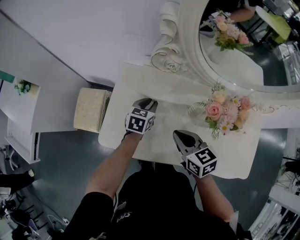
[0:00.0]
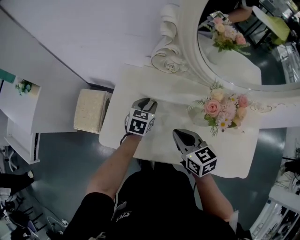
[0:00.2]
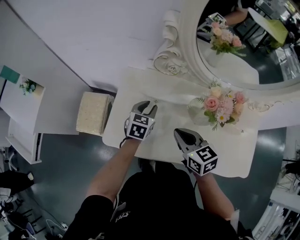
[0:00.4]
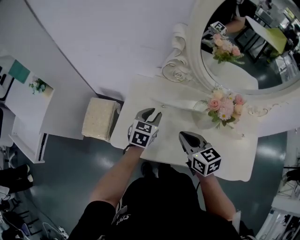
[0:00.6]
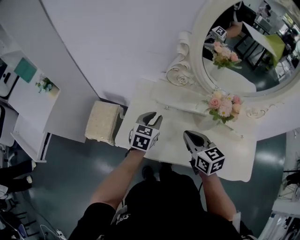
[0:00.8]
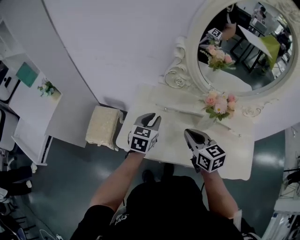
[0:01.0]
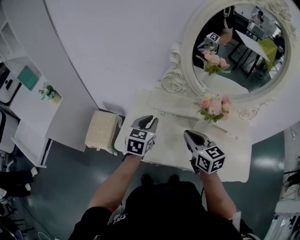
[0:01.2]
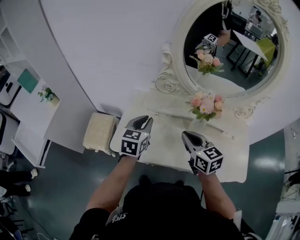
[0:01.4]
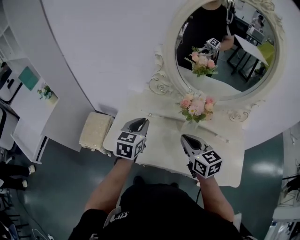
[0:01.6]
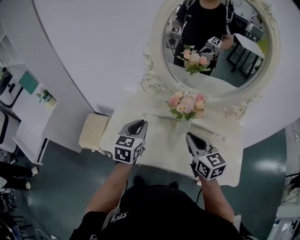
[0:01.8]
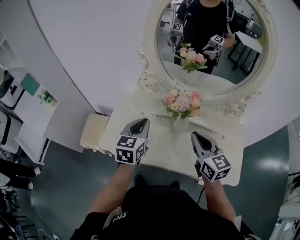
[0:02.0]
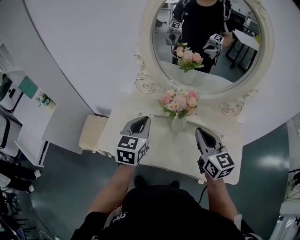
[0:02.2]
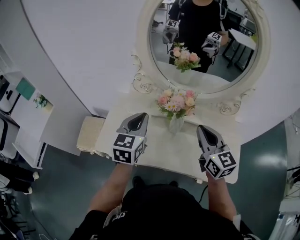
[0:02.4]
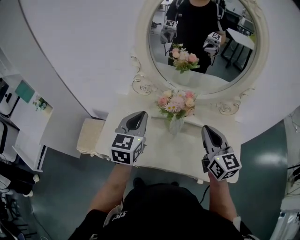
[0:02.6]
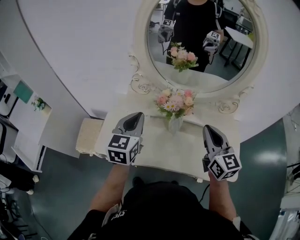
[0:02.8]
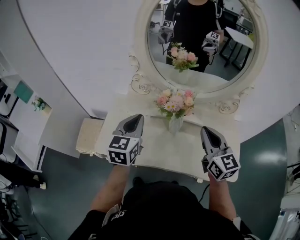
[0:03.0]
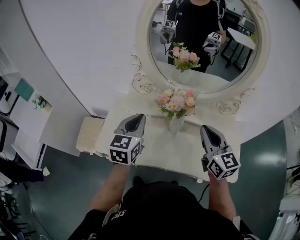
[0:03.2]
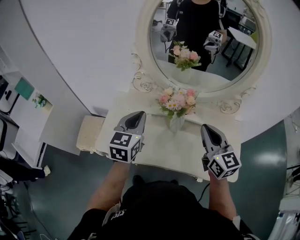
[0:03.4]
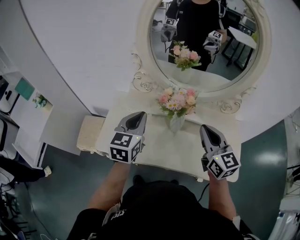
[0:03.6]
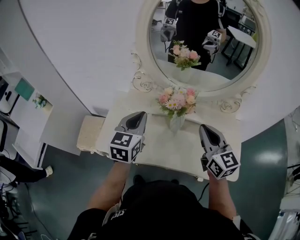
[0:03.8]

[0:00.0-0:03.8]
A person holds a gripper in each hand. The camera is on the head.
0:00.0 to 0:01.2: The left gripper travels upward and backward by roughly 20 cm, while the right gripper travels upward by some 10 cm.
0:01.2 to 0:02.6: The grippers both shift to the right and upward by approximately 20 cm. The right gripper rotates approximately 20 degrees.
0:02.6 to 0:03.8: There are only small adjustments of the grippers.

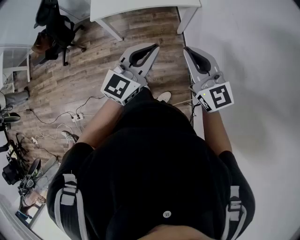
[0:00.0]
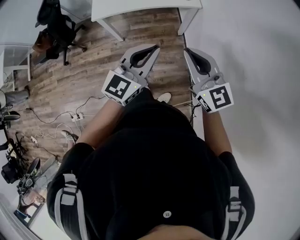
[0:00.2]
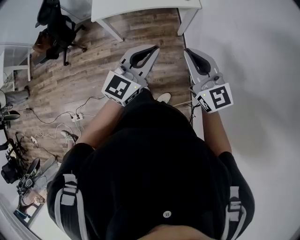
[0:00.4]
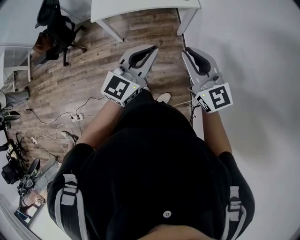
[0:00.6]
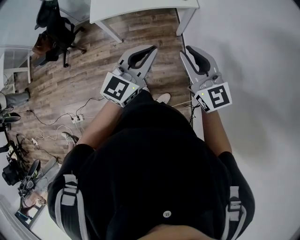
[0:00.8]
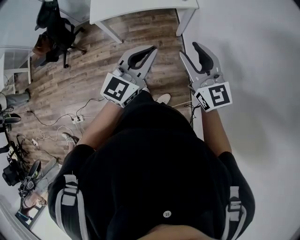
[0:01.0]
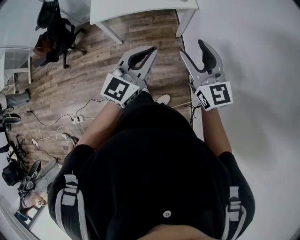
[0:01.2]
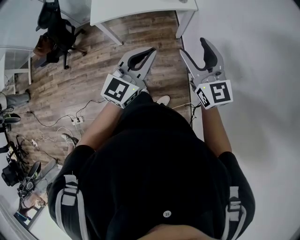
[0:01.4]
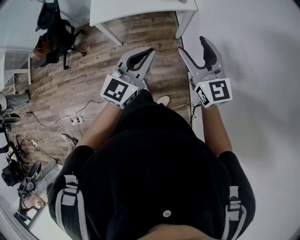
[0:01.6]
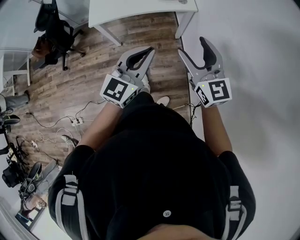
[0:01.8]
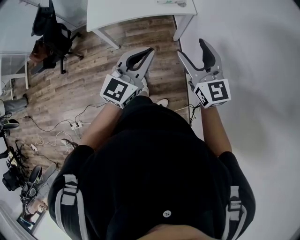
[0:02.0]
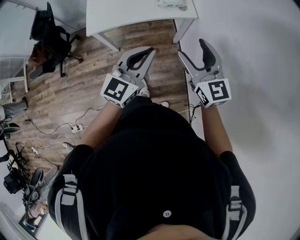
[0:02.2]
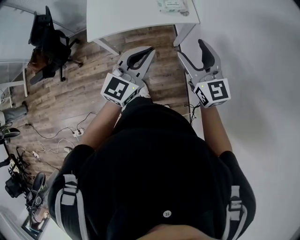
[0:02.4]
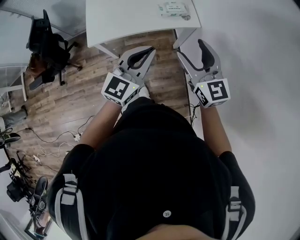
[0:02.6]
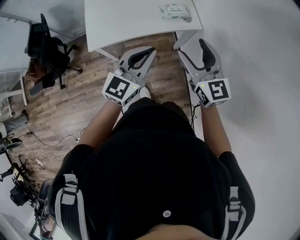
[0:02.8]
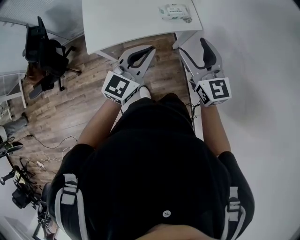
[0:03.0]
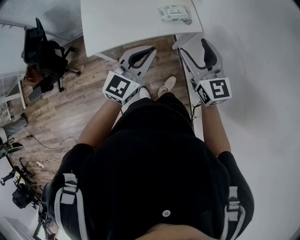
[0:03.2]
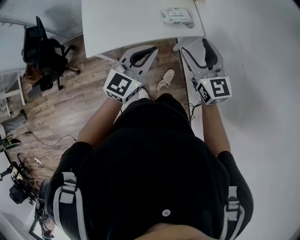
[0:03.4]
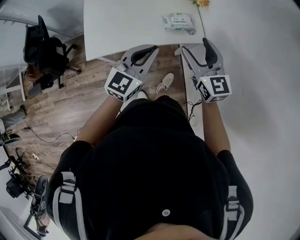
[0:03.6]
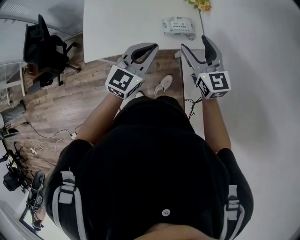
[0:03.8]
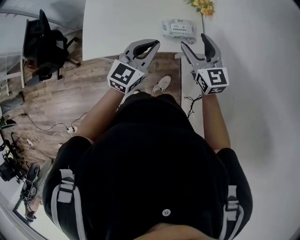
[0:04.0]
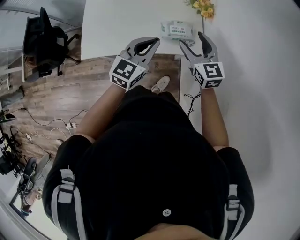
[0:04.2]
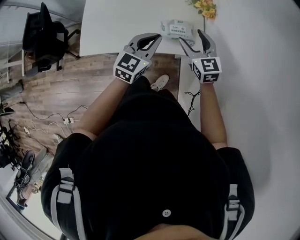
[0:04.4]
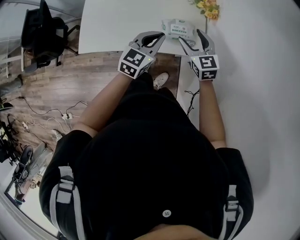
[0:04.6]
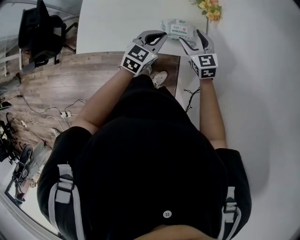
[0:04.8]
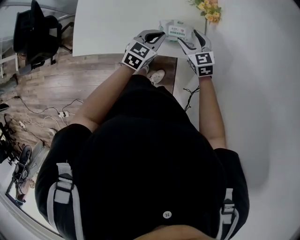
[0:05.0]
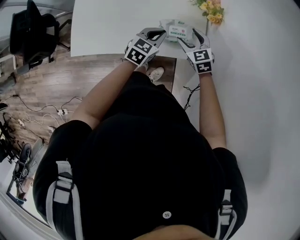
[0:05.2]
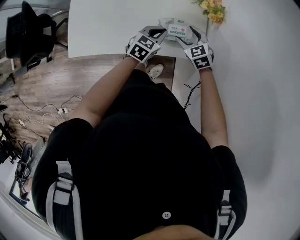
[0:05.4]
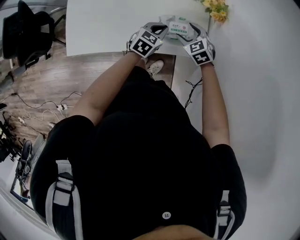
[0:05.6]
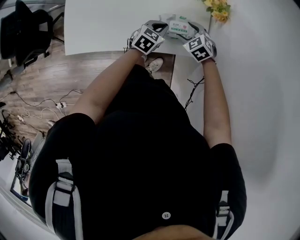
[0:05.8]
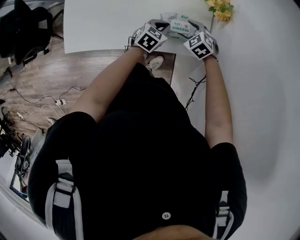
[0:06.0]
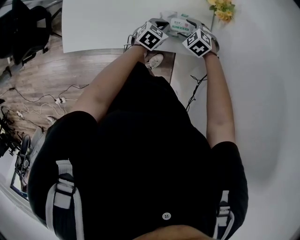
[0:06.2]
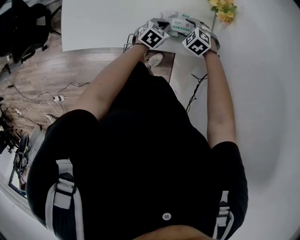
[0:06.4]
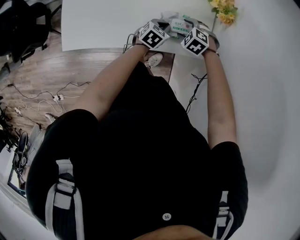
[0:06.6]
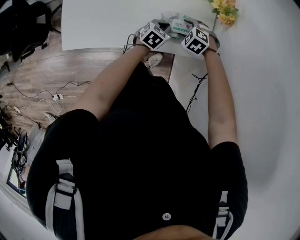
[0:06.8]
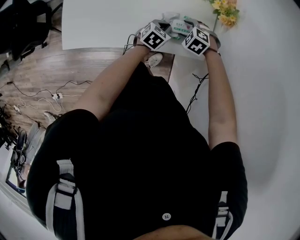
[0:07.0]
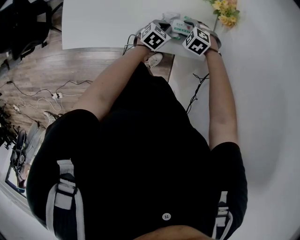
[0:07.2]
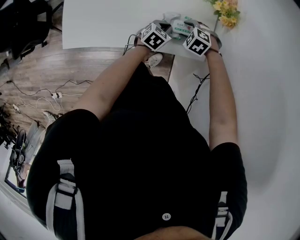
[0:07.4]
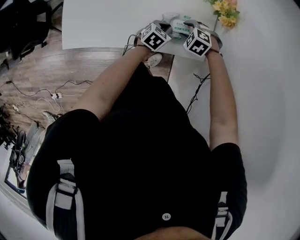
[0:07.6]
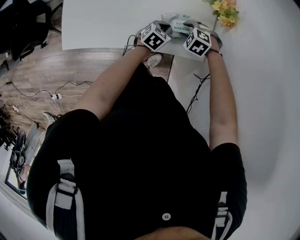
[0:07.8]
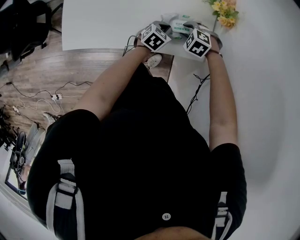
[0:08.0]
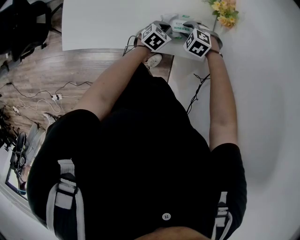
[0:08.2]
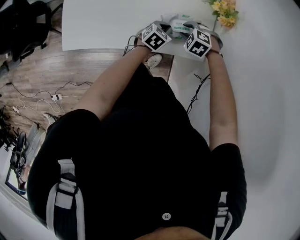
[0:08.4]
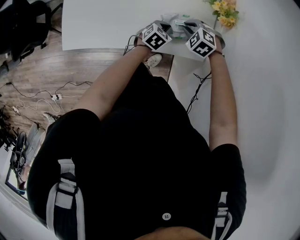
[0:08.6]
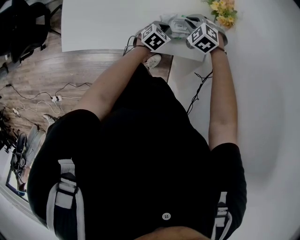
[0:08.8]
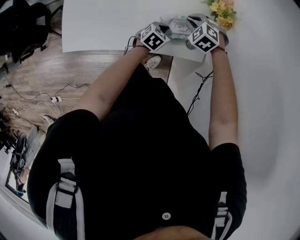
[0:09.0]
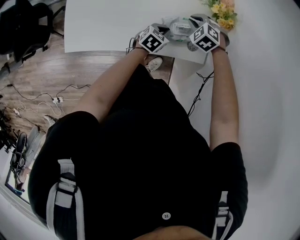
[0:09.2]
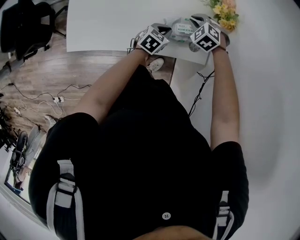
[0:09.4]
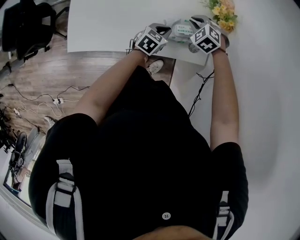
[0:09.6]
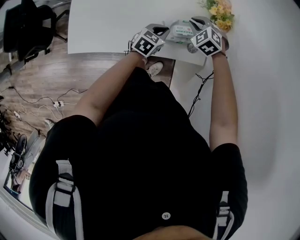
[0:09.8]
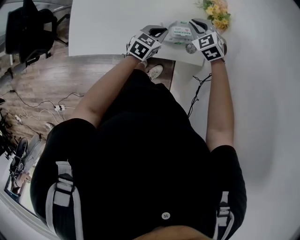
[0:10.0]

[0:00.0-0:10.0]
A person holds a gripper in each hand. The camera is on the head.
0:00.0 to 0:01.4: The right gripper opens.
0:01.4 to 0:02.8: Both grippers travel together forward and to the left, about 25 cm.
0:02.8 to 0:04.2: The left gripper moves forward, some 25 cm; the right gripper shifts about 30 cm forward and downward.
0:04.2 to 0:05.8: The grippers both shift downward and forward by roughly 30 cm. The left gripper changes its angle by about 30 degrees, while the right gripper angles its fingers downward, by roughly 40 degrees.
0:05.8 to 0:07.2: The right gripper turns by some 30 degrees. The left gripper moves downward, approximately 5 cm.
0:07.2 to 0:08.6: The right gripper closes its fingers.
0:08.6 to 0:10.0: Both grippers travel together upward, about 10 cm. The right gripper swivels roughly 30 degrees.

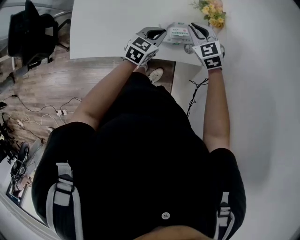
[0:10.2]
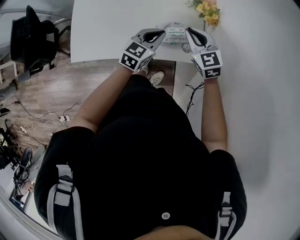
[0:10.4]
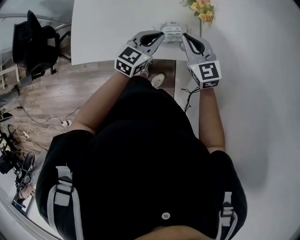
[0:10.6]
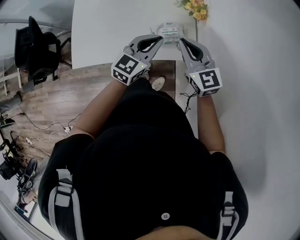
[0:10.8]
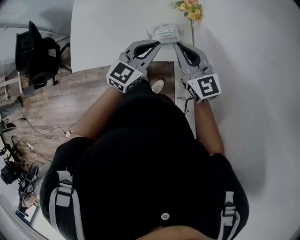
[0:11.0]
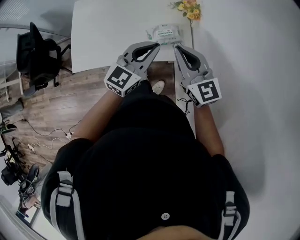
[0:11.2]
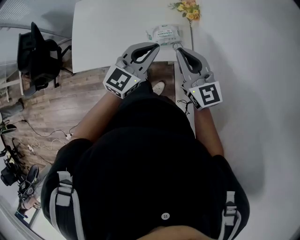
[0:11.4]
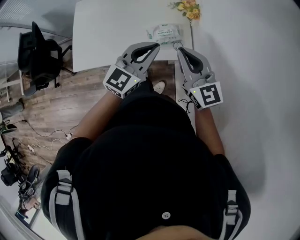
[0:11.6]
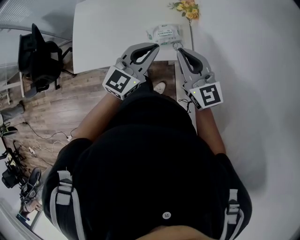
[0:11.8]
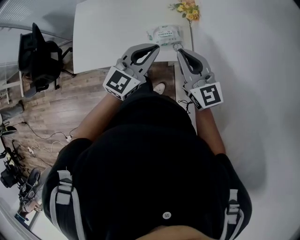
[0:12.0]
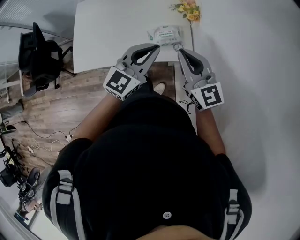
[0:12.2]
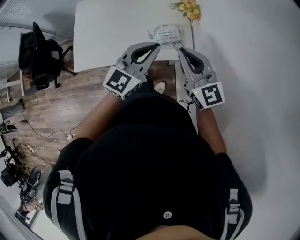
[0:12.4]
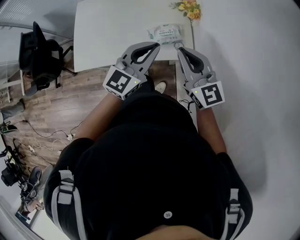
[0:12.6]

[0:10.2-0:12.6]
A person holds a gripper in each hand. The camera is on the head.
0:10.2 to 0:11.4: The left gripper is displaced upward and backward by some 25 cm, and turns by roughly 30 degrees; the right gripper heads backward and upward, covering some 25 cm, and points its fingers about 30 degrees further upward.
0:11.4 to 0:12.6: There are only small adjustments of the grippers.

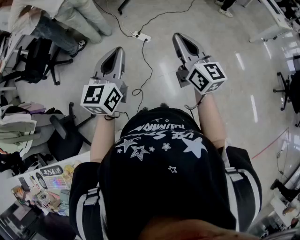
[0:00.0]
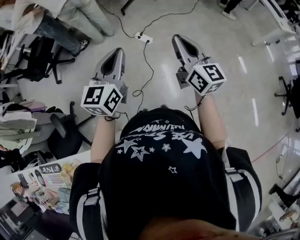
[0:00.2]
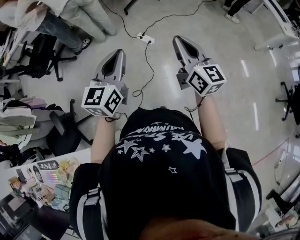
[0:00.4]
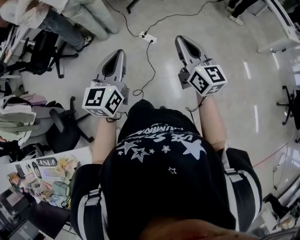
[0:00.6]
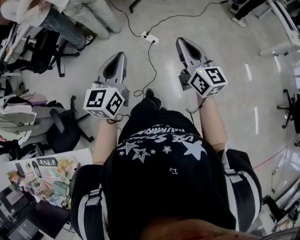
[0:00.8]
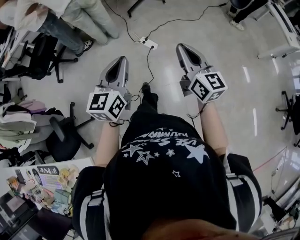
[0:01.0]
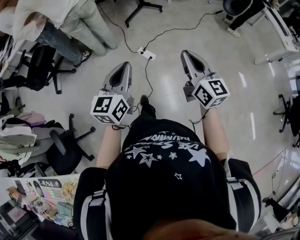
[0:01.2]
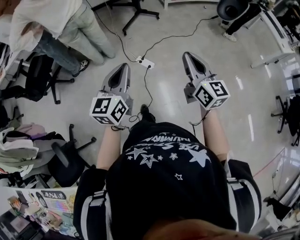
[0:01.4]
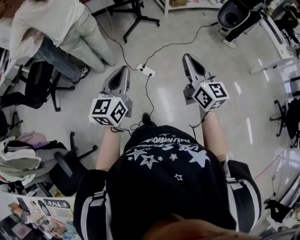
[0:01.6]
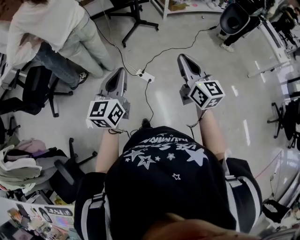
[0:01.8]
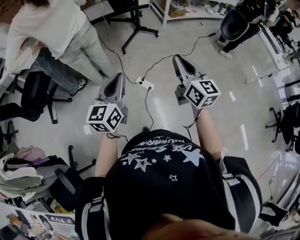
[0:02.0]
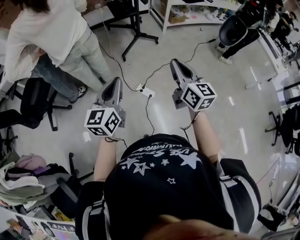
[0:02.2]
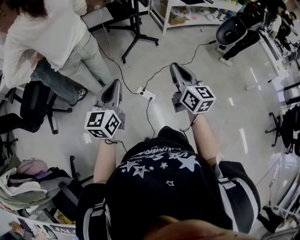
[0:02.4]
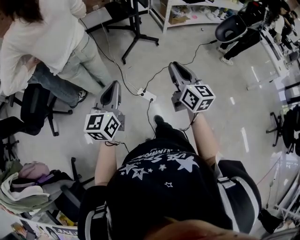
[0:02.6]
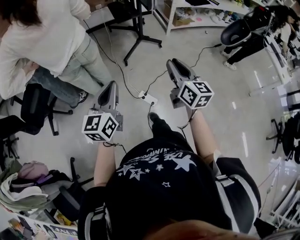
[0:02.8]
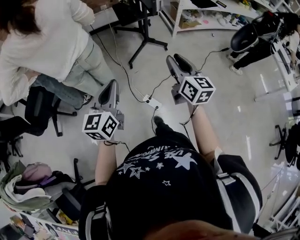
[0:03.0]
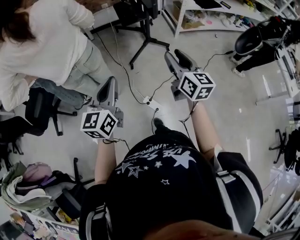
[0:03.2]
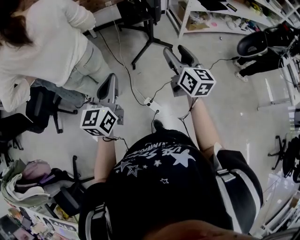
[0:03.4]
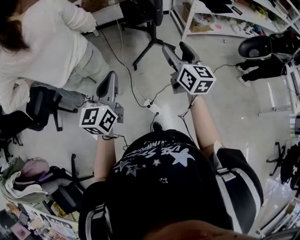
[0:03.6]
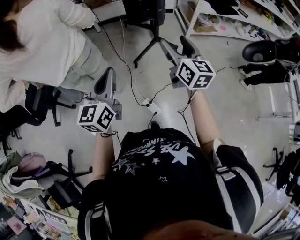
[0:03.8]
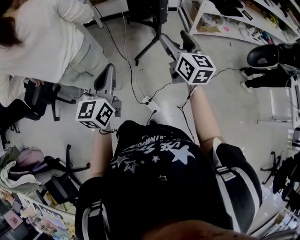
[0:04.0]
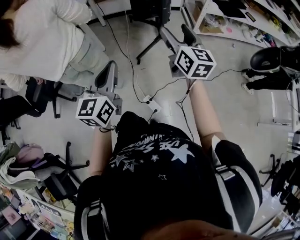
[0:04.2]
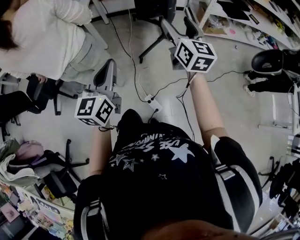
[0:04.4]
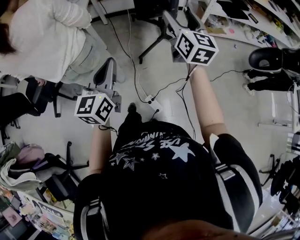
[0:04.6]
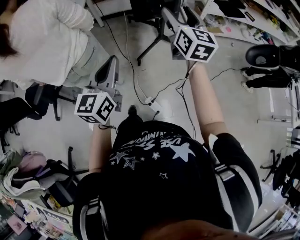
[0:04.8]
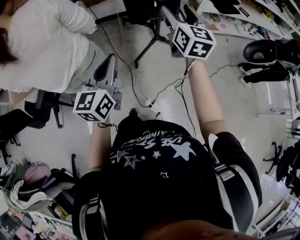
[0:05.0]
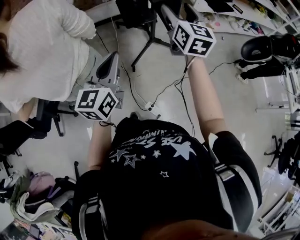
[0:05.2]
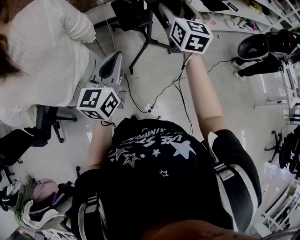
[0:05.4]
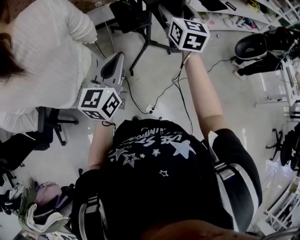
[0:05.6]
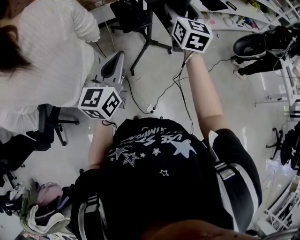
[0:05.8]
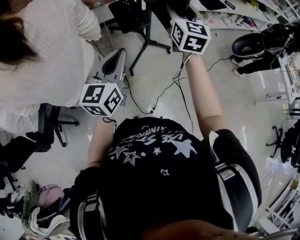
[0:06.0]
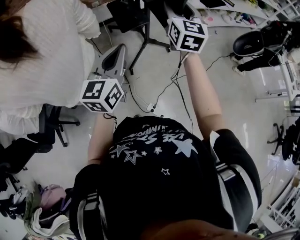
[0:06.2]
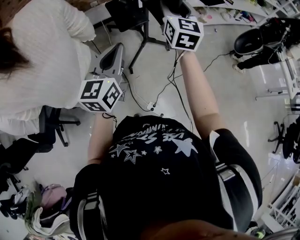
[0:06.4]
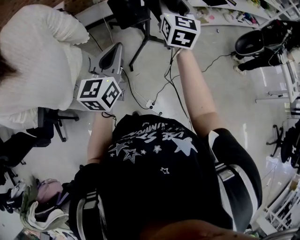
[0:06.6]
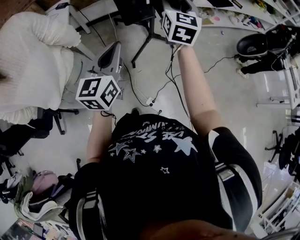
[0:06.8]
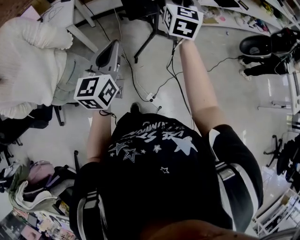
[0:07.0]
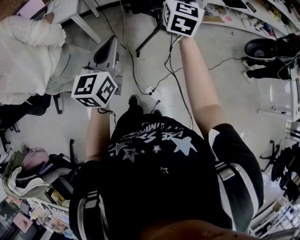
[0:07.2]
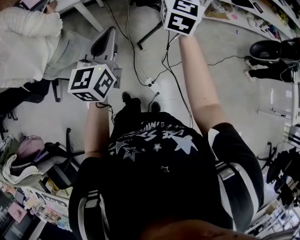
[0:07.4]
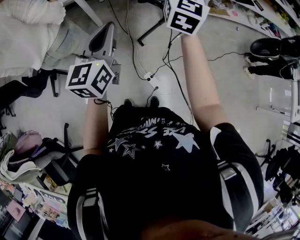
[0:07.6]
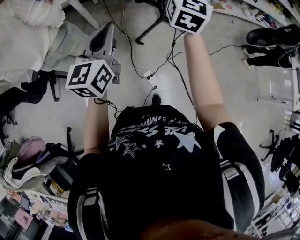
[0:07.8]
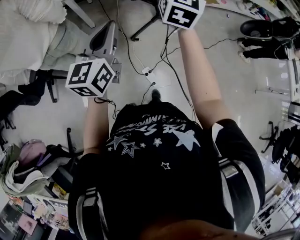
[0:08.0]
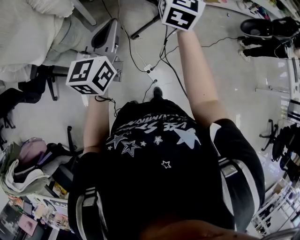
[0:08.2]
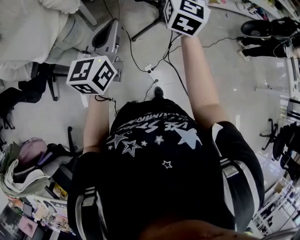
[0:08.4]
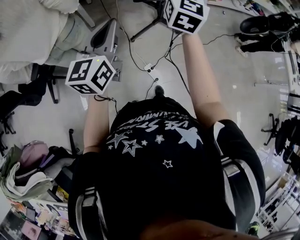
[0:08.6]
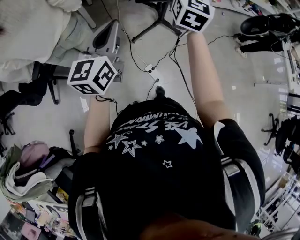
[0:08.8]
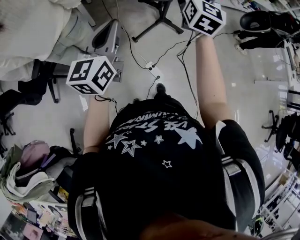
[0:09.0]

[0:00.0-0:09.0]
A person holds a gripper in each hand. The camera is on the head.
0:00.0 to 0:01.6: The grippers both shift forward by roughly 20 cm.
0:01.6 to 0:03.0: Both grippers travel together forward, about 30 cm.
0:03.0 to 0:04.4: The right gripper moves forward, about 25 cm, and opens its fingers, while the left gripper travels forward by some 15 cm.
0:04.4 to 0:06.0: Both grippers move forward, about 15 cm. The left gripper swivels roughly 20 degrees; the right gripper turns by roughly 30 degrees, and closes up.
0:06.0 to 0:07.6: The grippers both shift backward by some 10 cm.
0:07.6 to 0:09.0: The right gripper is displaced backward by approximately 15 cm; the left gripper moves backward and to the left, approximately 15 cm.
